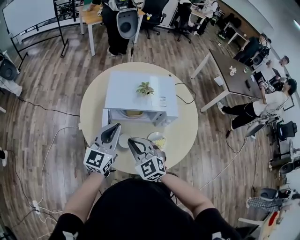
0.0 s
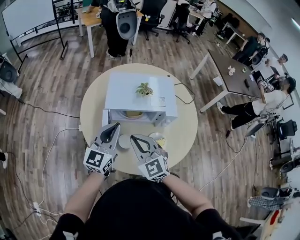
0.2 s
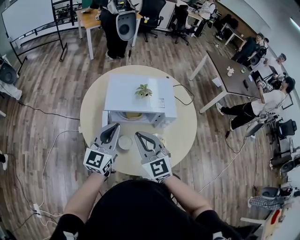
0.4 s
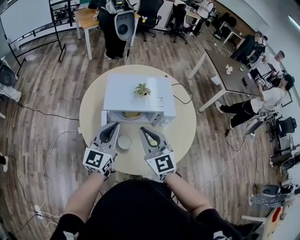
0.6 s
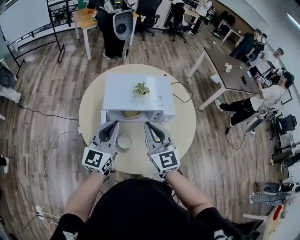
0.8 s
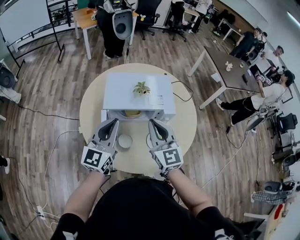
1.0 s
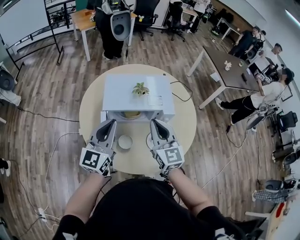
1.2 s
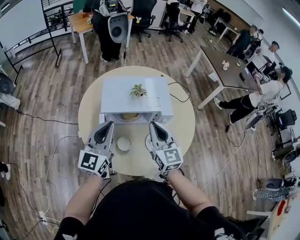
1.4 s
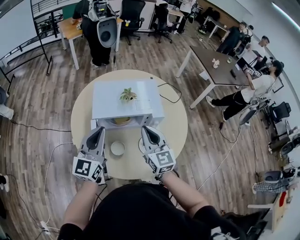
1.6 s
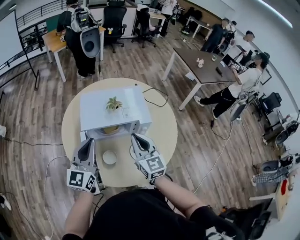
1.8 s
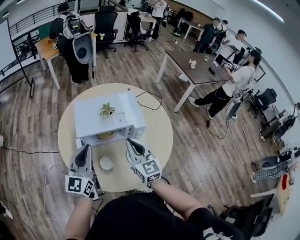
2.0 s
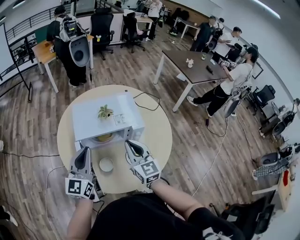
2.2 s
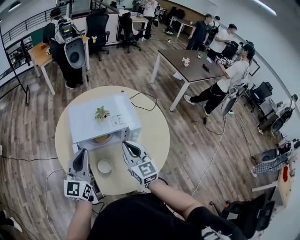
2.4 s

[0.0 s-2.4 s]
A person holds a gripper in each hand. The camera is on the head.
0.0 to 1.2 s: The right gripper heads to the right, upward and forward, covering some 15 cm, and turns by approximately 40 degrees.
1.2 to 2.4 s: The grippers move only a little.

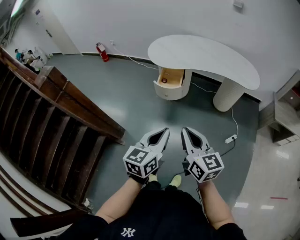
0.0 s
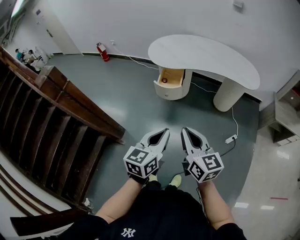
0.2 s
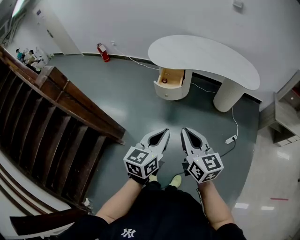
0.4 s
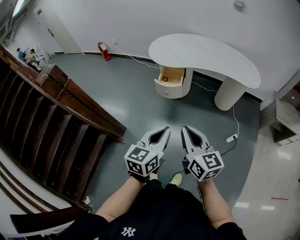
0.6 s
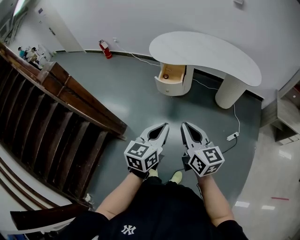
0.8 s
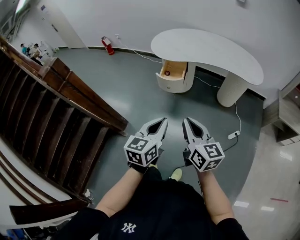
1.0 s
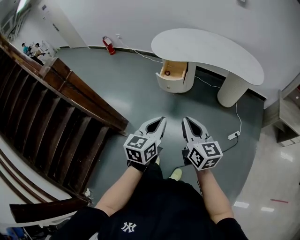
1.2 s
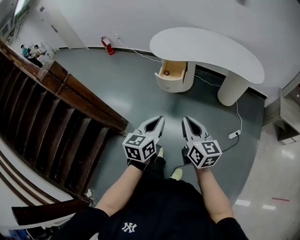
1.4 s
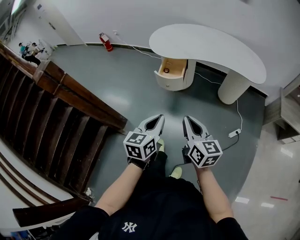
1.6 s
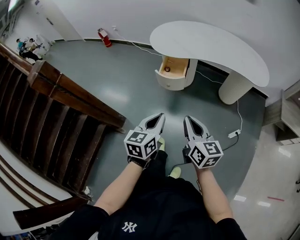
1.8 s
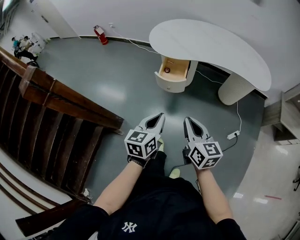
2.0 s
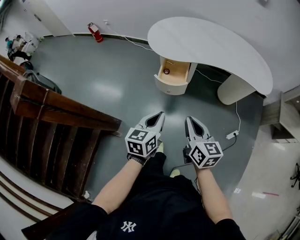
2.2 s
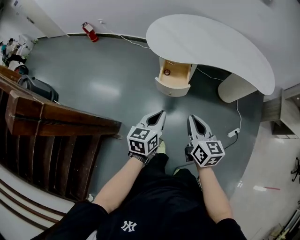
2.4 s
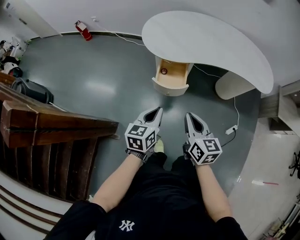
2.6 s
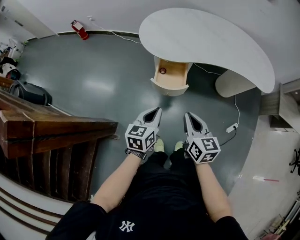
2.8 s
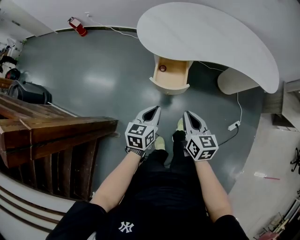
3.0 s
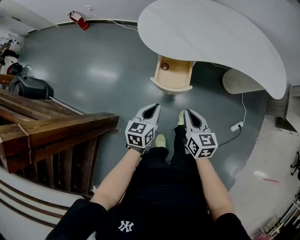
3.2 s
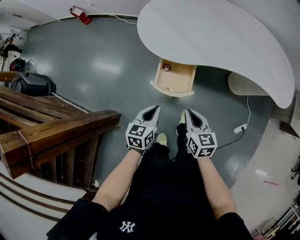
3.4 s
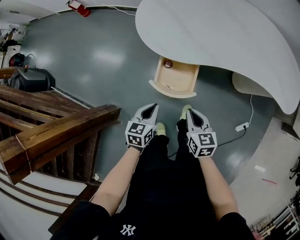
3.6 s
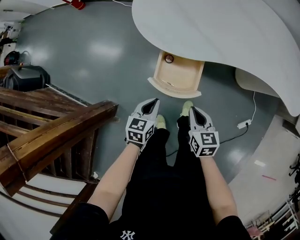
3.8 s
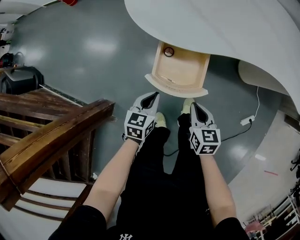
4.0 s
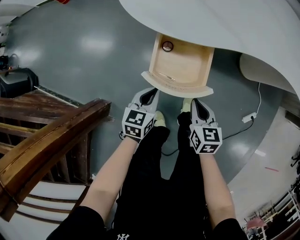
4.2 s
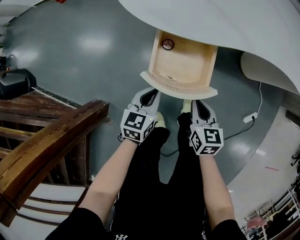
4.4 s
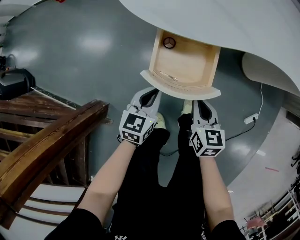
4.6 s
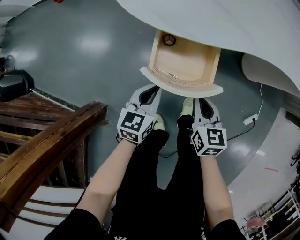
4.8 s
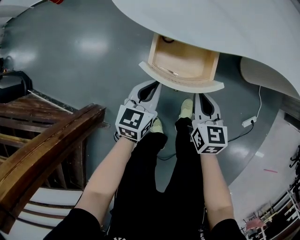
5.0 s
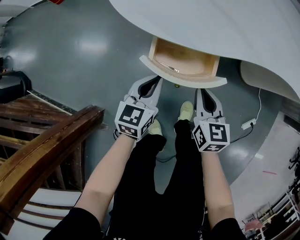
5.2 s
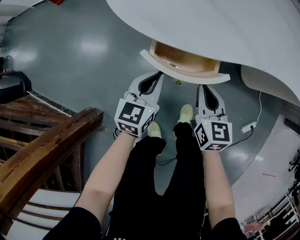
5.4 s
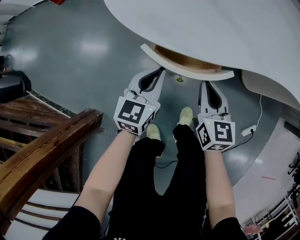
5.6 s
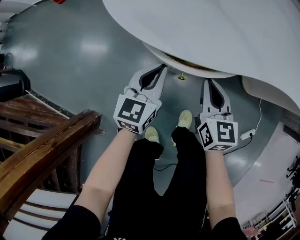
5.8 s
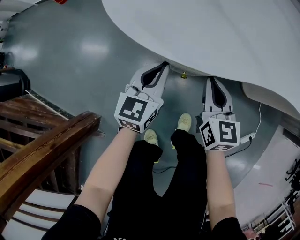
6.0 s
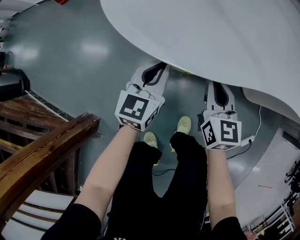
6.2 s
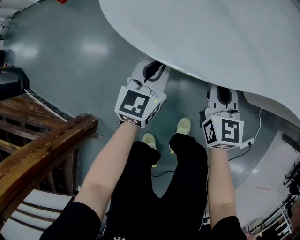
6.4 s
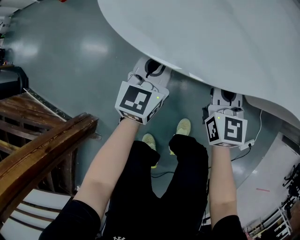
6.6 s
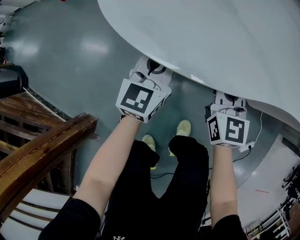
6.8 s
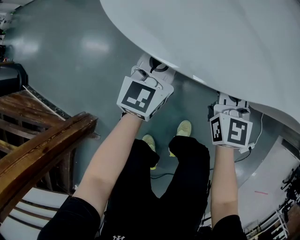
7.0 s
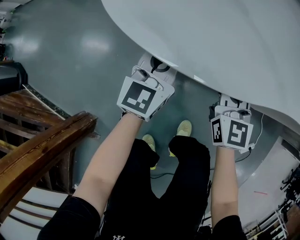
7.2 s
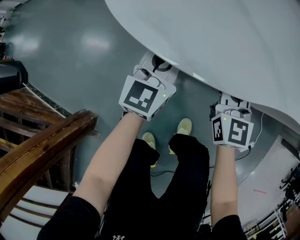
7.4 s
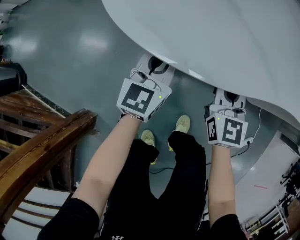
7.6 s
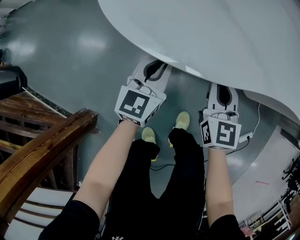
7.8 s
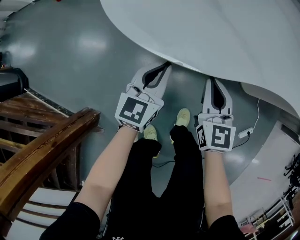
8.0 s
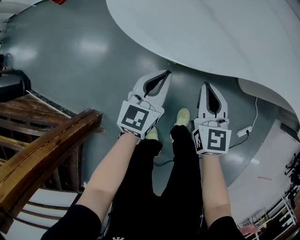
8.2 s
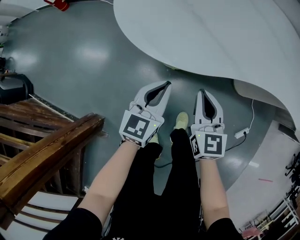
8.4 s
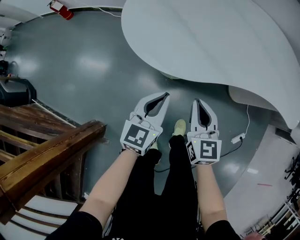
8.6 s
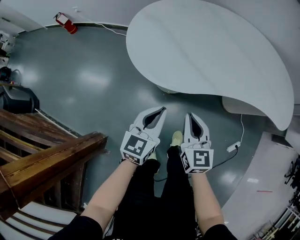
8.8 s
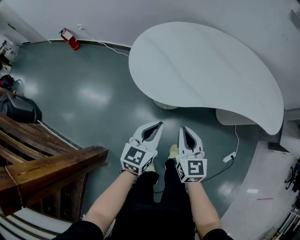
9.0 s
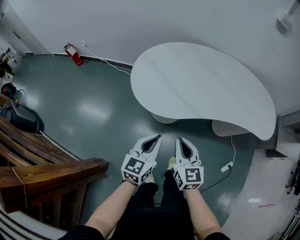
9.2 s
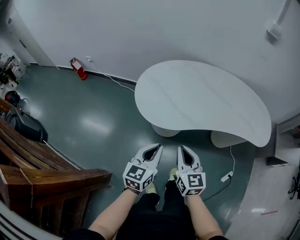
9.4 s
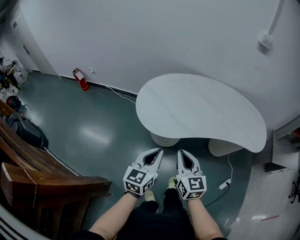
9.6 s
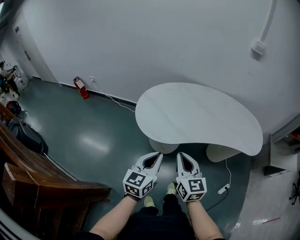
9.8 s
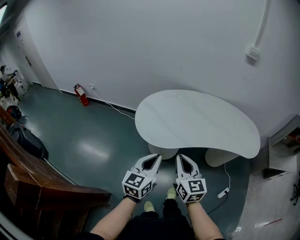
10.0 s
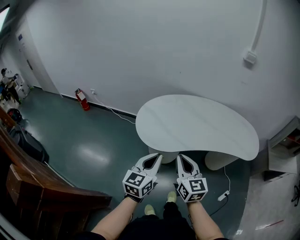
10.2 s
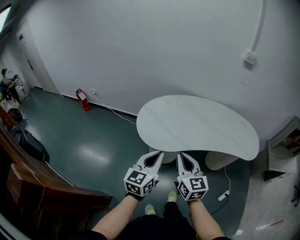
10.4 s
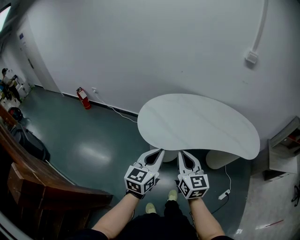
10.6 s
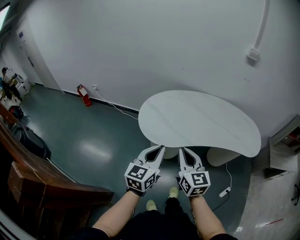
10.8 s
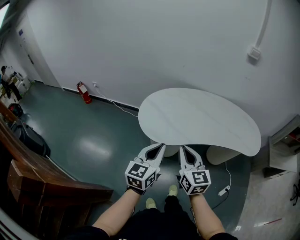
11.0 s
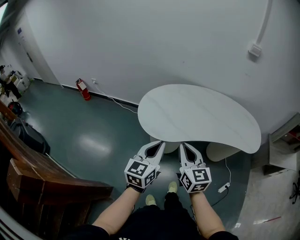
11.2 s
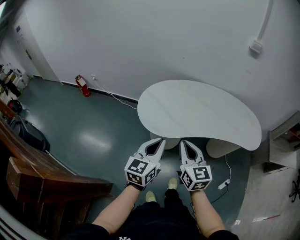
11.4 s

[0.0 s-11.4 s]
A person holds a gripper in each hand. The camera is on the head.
0.0 to 1.4 s: The right gripper changes place by about 5 cm.
1.4 to 2.8 s: Both grippers travel together forward and downward, about 35 cm.
2.8 to 4.2 s: The grippers both shift downward and forward by about 35 cm.
4.2 to 5.6 s: The two grippers go about 15 cm forward.
5.6 to 7.2 s: Both grippers travel together forward, some 10 cm. The right gripper swivels roughly 20 degrees.
7.2 to 8.6 s: The grippers both shift backward and upward by about 20 cm.
8.6 to 10.0 s: The two grippers go roughly 30 cm upward.
10.0 to 11.4 s: There are only small adjustments of the grippers.

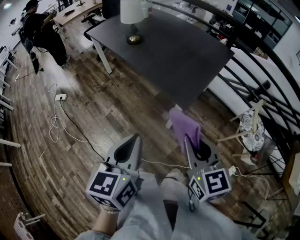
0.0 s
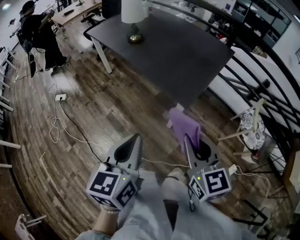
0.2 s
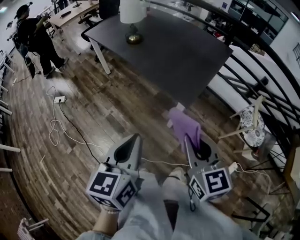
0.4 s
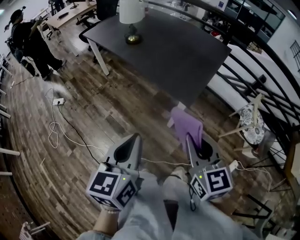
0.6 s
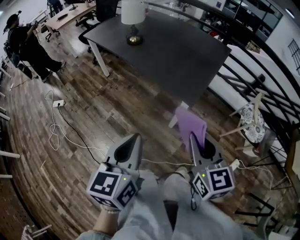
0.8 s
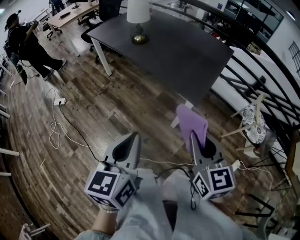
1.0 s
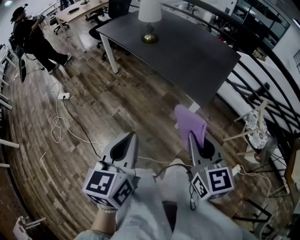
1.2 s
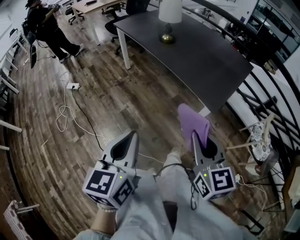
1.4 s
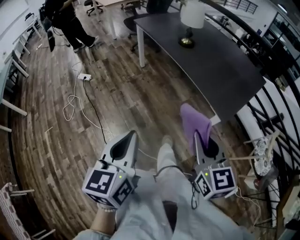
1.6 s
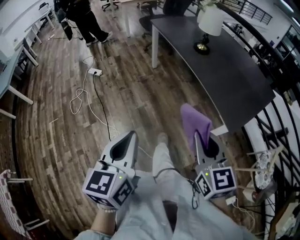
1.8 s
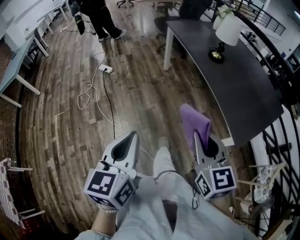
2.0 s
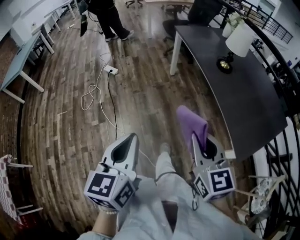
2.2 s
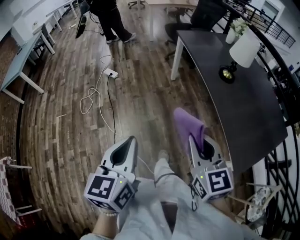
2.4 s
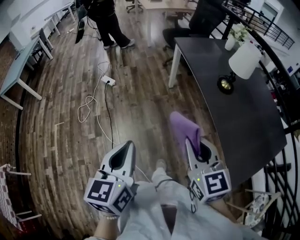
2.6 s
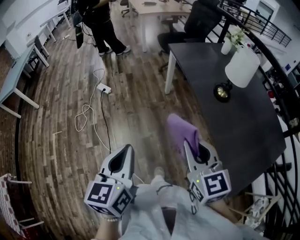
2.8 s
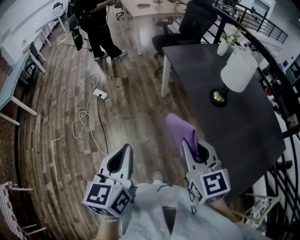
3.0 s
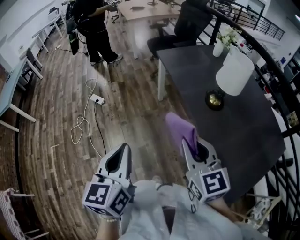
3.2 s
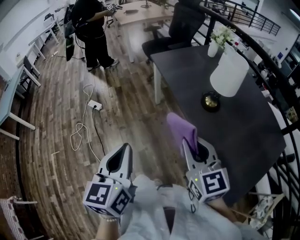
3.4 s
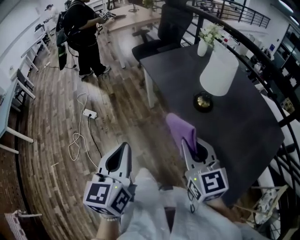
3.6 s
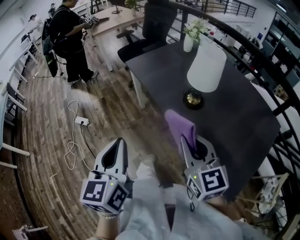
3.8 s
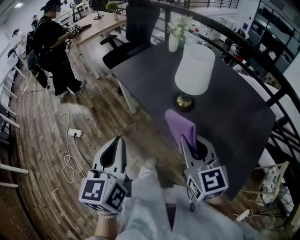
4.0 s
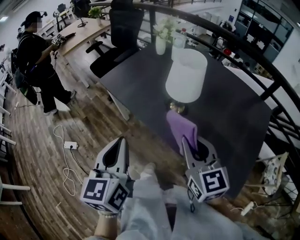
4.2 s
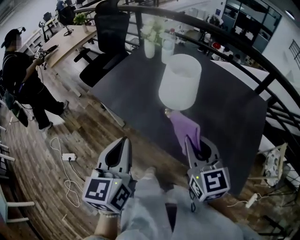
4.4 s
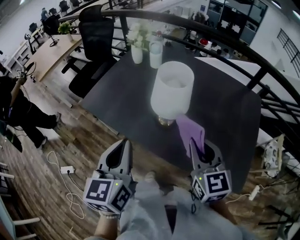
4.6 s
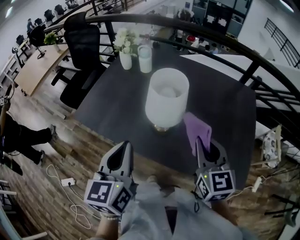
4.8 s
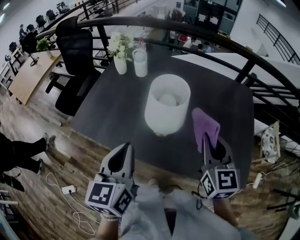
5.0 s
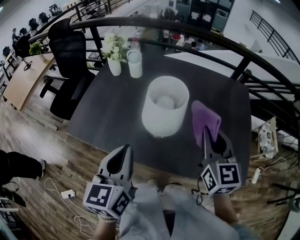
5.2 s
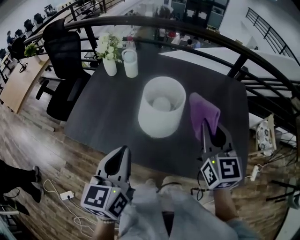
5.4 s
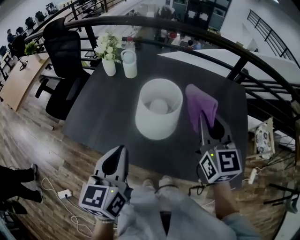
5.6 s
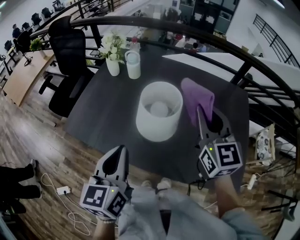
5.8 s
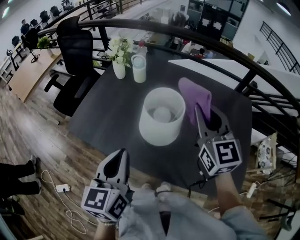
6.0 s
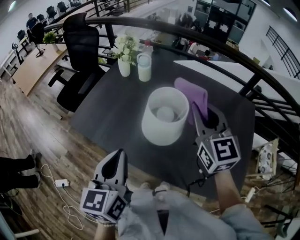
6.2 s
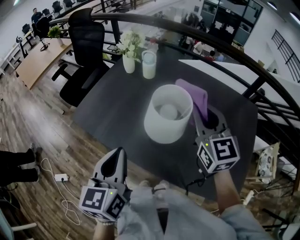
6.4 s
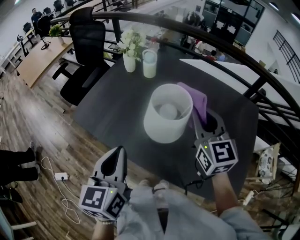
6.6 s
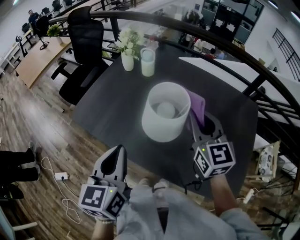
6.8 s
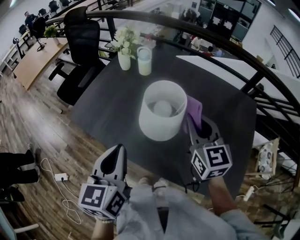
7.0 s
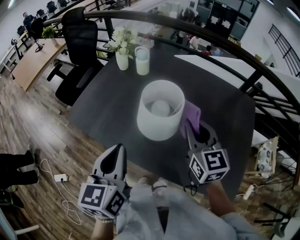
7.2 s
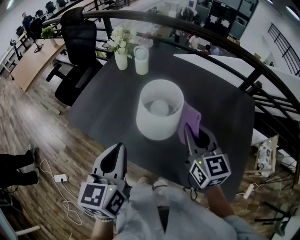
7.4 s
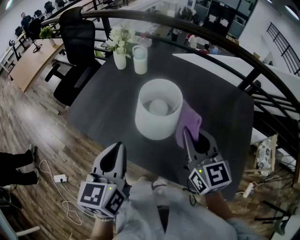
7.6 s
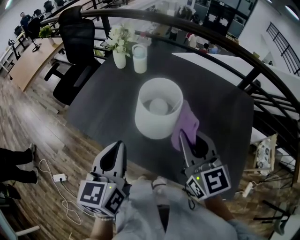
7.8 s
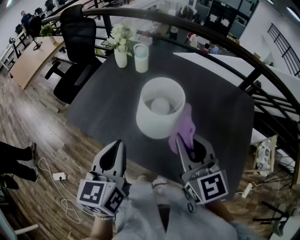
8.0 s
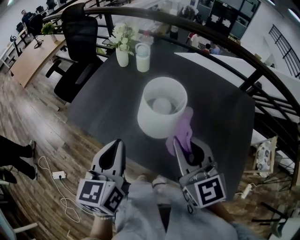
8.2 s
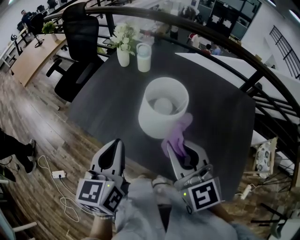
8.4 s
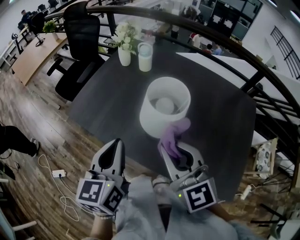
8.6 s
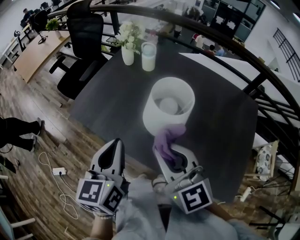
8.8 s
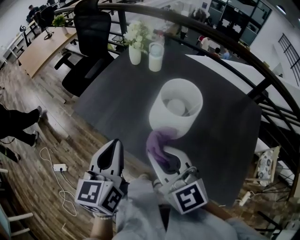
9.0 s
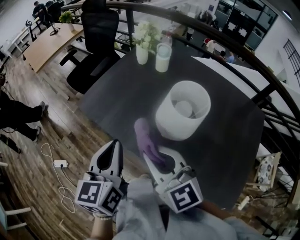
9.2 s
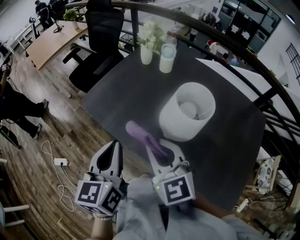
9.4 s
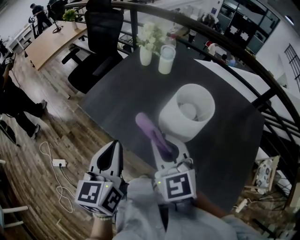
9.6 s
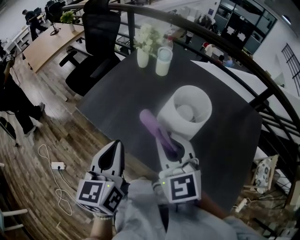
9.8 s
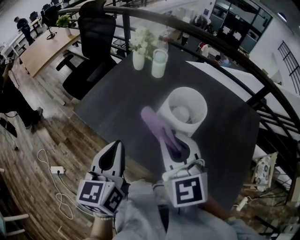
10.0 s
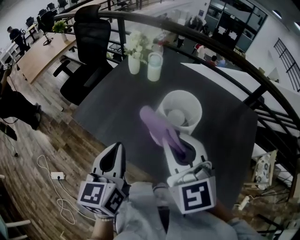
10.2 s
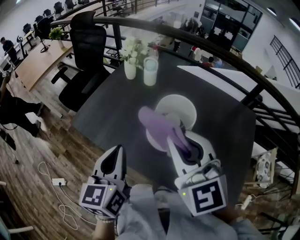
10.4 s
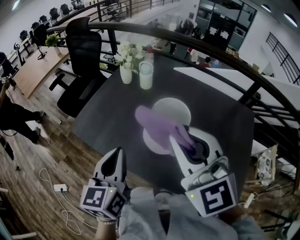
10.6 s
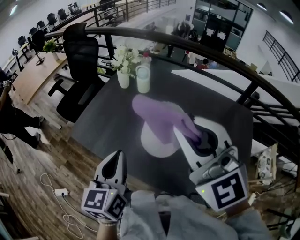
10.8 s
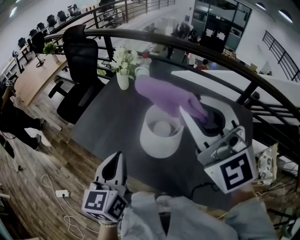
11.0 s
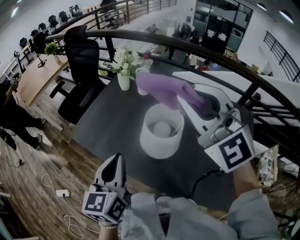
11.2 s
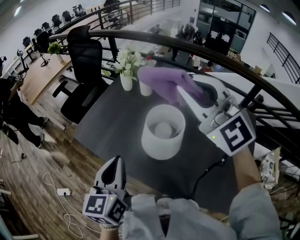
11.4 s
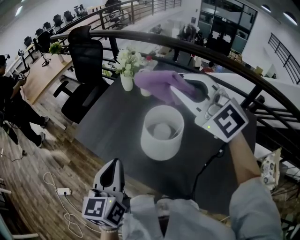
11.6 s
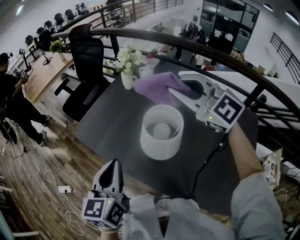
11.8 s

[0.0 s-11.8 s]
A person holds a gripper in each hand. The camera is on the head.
0.0 to 1.4 s: The grippers both shift to the left by some 15 cm.
1.4 to 3.0 s: The right gripper ends up about 40 cm from where it was, and turns by about 30 degrees. Meanwhile the left gripper moves about 35 cm, and changes its angle by approximately 30 degrees.
3.0 to 4.4 s: The right gripper shifts by roughly 30 cm, and rotates some 40 degrees; the left gripper changes place by some 40 cm, and rotates some 30 degrees.
4.4 to 6.0 s: The left gripper shifts by roughly 15 cm. Meanwhile the right gripper ends up approximately 20 cm from where it was, and changes its angle by some 20 degrees.
6.0 to 7.4 s: The right gripper travels downward by some 10 cm.
7.4 to 8.8 s: The right gripper goes about 15 cm to the left and backward, and swivels about 30 degrees.
8.8 to 10.4 s: The right gripper heads upward, covering some 5 cm.
10.4 to 11.8 s: The right gripper moves forward and to the right, roughly 15 cm, and turns by roughly 30 degrees.
